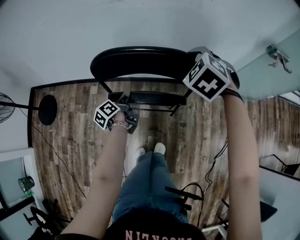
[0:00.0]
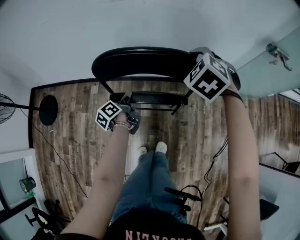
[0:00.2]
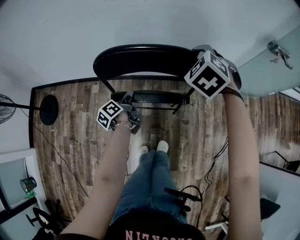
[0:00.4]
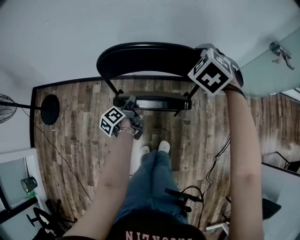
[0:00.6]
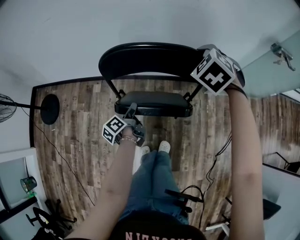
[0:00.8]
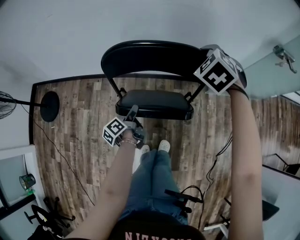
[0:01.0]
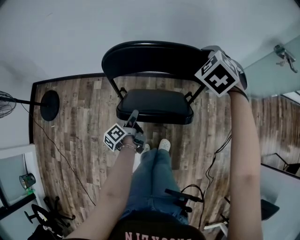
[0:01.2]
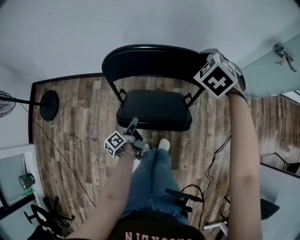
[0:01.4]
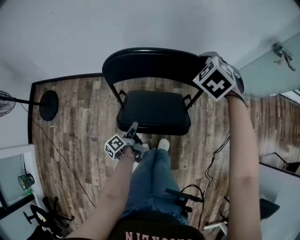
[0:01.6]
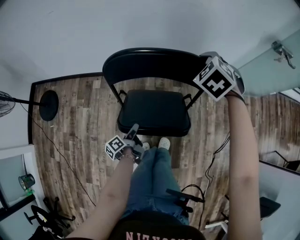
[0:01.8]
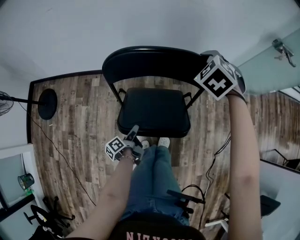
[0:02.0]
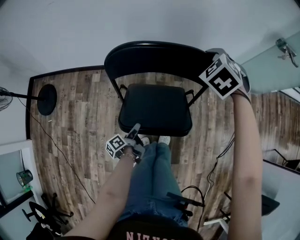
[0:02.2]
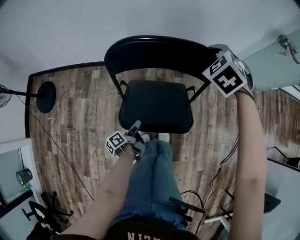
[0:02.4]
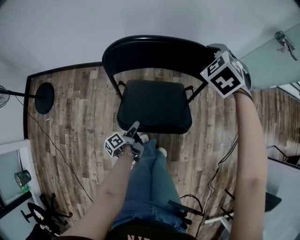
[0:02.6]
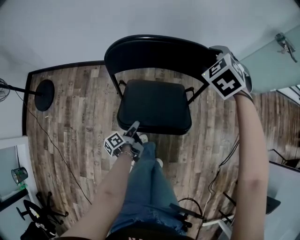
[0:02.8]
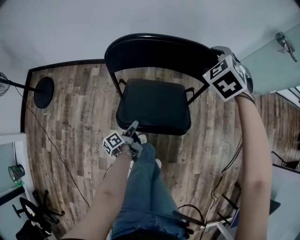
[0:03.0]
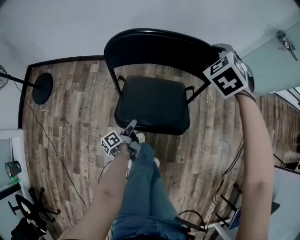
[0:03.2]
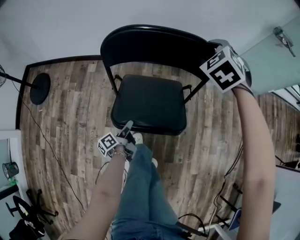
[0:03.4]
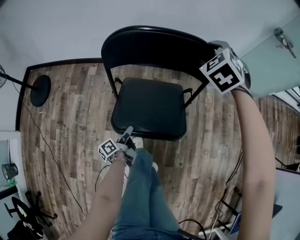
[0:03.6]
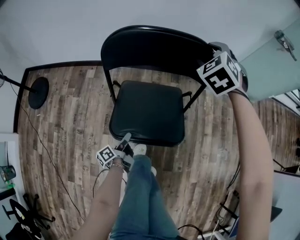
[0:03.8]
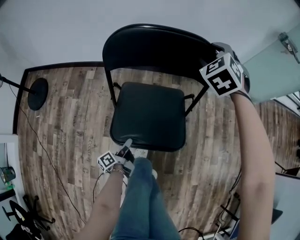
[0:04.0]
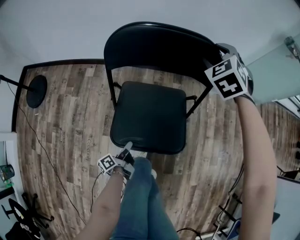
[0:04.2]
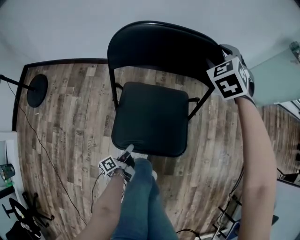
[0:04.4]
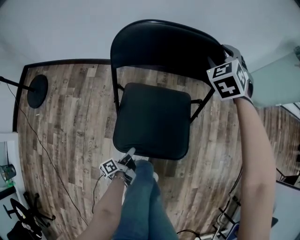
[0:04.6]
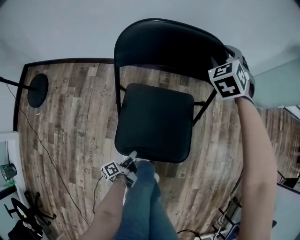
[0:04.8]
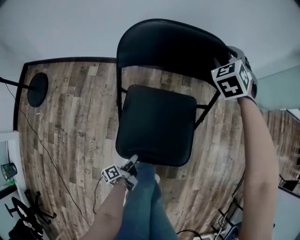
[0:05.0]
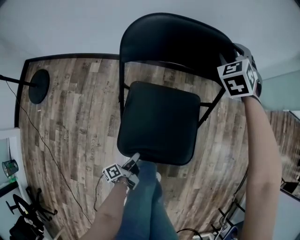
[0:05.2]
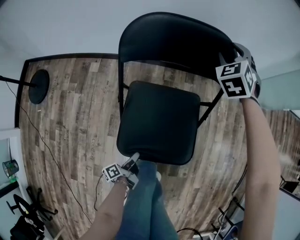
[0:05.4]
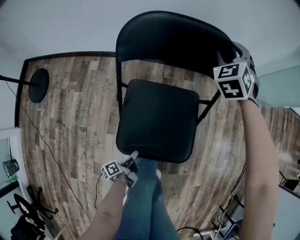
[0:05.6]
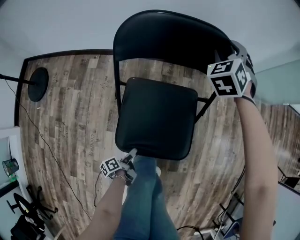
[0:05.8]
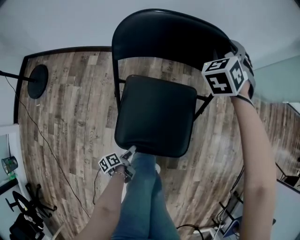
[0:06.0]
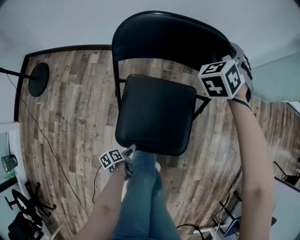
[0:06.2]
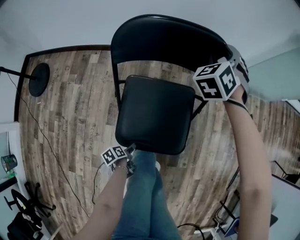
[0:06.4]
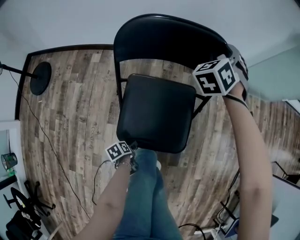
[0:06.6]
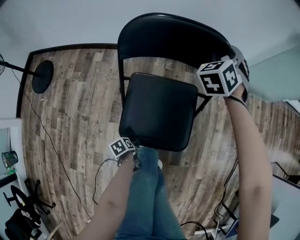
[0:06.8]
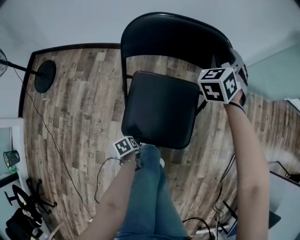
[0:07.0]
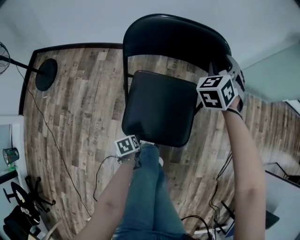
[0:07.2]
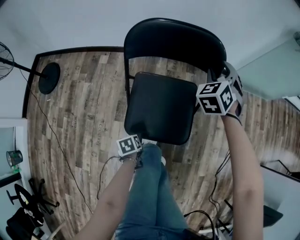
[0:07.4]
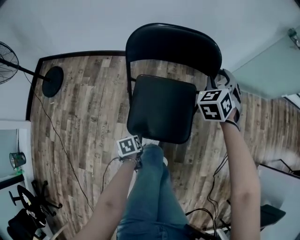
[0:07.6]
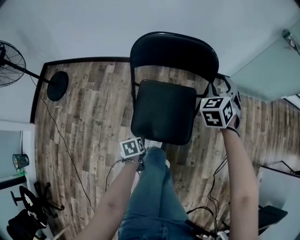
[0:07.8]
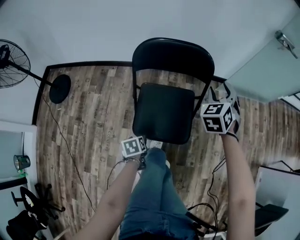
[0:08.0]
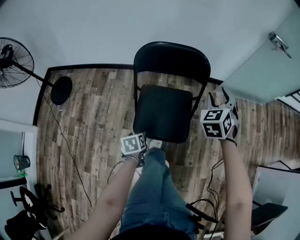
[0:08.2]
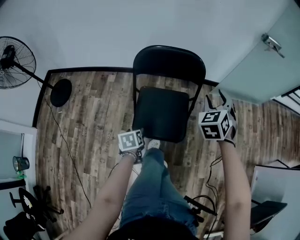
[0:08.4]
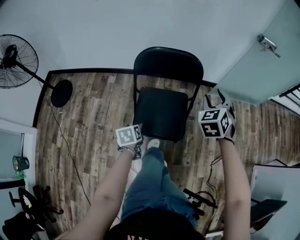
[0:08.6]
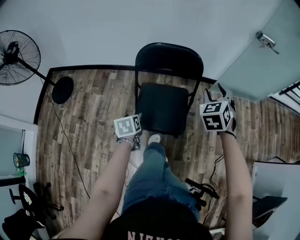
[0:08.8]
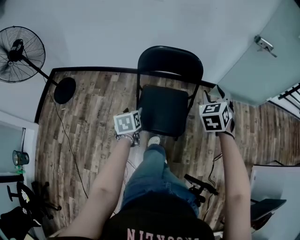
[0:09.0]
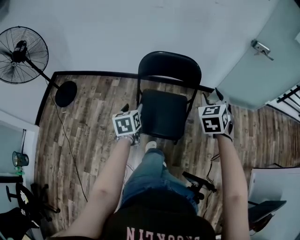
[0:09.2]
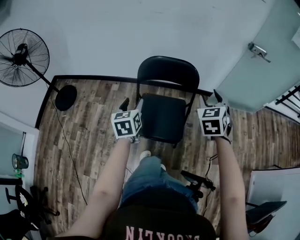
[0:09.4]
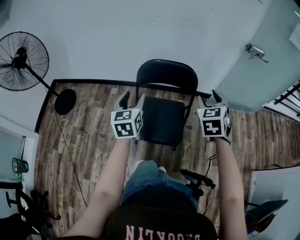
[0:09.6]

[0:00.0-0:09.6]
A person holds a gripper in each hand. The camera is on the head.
0:00.0 to 0:01.6: The left gripper goes some 20 cm backward and downward.
0:01.6 to 0:03.2: The right gripper heads backward, covering some 10 cm, while the left gripper moves backward and downward, about 15 cm.
0:03.2 to 0:04.8: The right gripper shifts approximately 20 cm forward and downward. Meanwhile the left gripper moves downward, about 10 cm.
0:04.8 to 0:06.4: The right gripper goes approximately 5 cm backward, while the left gripper is displaced backward and downward by about 10 cm, angles its fingers downward, by some 40 degrees, and opens up.
0:06.4 to 0:08.0: The right gripper shifts by some 20 cm; the left gripper moves upward, some 20 cm, and swivels approximately 40 degrees.
0:08.0 to 0:09.6: The right gripper shifts about 20 cm upward and backward. The left gripper is displaced upward by some 40 cm, and points its fingers some 50 degrees further upward.

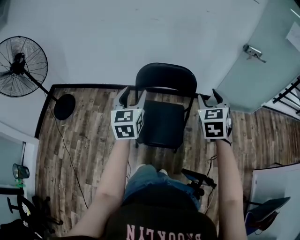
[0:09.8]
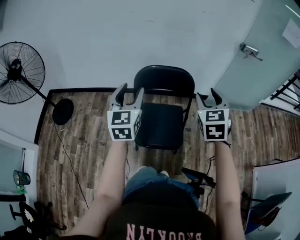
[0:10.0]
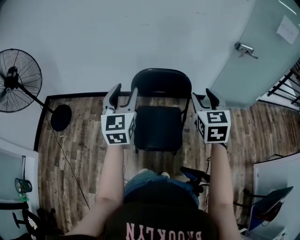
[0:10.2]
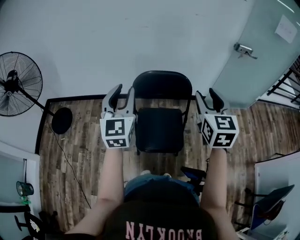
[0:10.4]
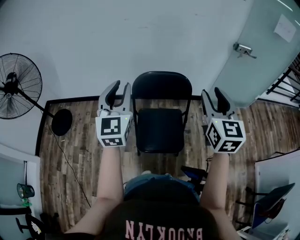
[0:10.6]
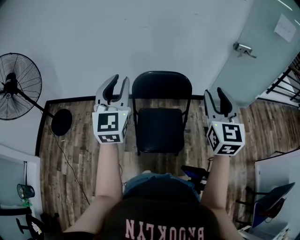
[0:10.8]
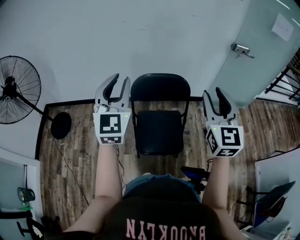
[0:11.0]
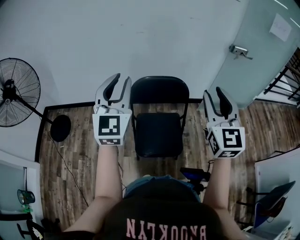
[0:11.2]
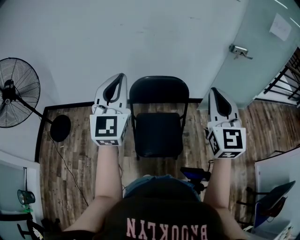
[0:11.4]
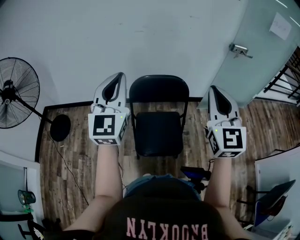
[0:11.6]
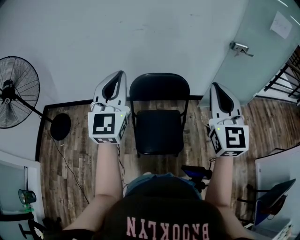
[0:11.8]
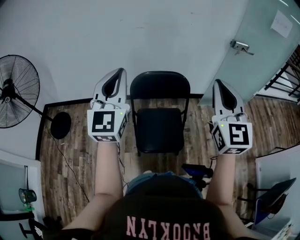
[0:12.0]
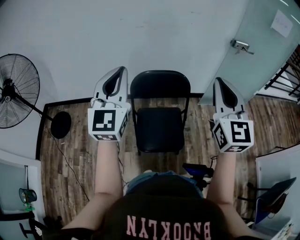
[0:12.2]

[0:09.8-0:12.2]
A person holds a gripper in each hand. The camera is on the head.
0:09.8 to 0:11.0: The two grippers go about 15 cm upward. The right gripper rotates roughly 30 degrees. Meanwhile the left gripper turns by about 30 degrees.
0:11.0 to 0:12.2: The grippers move only a little.

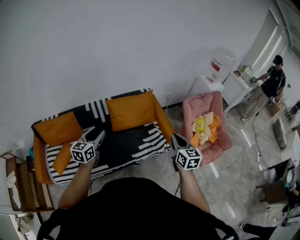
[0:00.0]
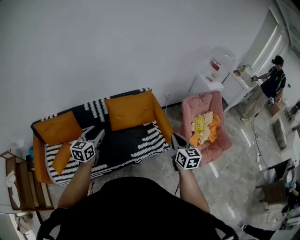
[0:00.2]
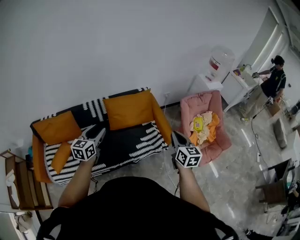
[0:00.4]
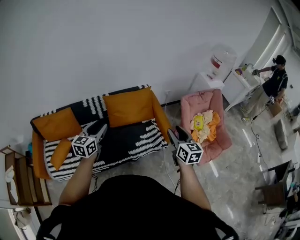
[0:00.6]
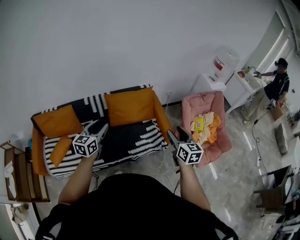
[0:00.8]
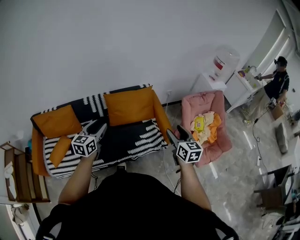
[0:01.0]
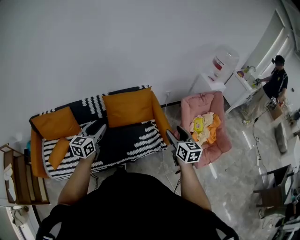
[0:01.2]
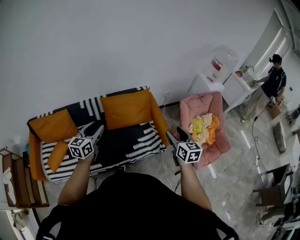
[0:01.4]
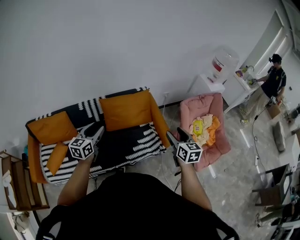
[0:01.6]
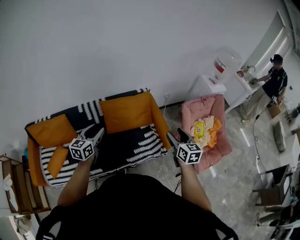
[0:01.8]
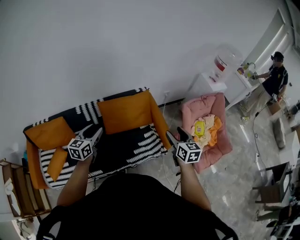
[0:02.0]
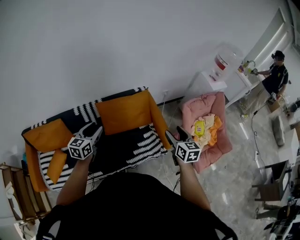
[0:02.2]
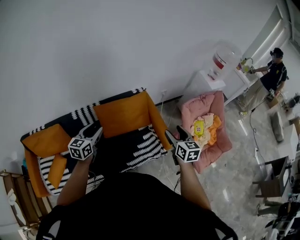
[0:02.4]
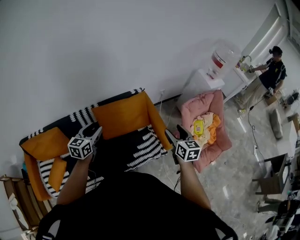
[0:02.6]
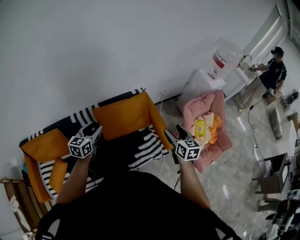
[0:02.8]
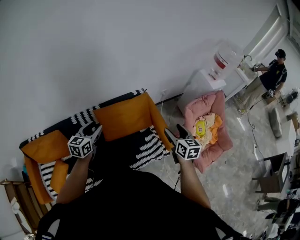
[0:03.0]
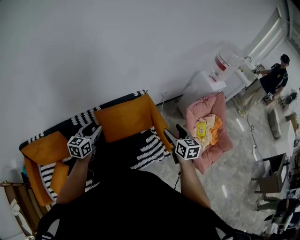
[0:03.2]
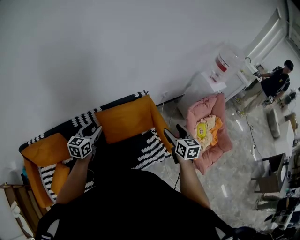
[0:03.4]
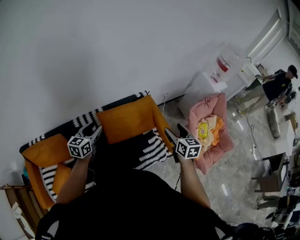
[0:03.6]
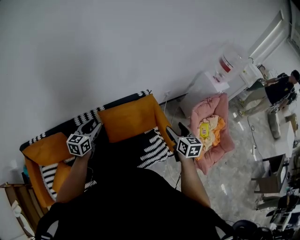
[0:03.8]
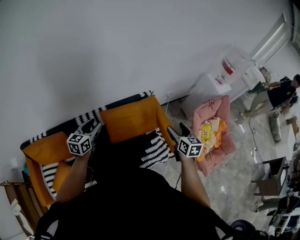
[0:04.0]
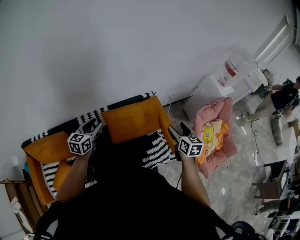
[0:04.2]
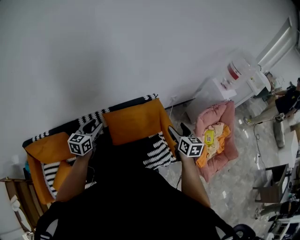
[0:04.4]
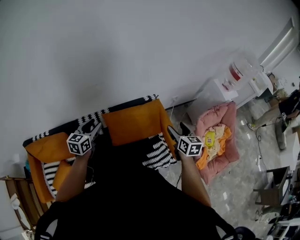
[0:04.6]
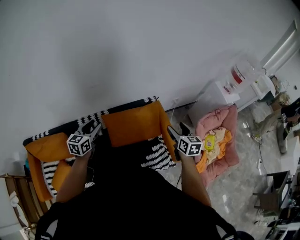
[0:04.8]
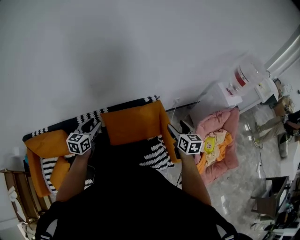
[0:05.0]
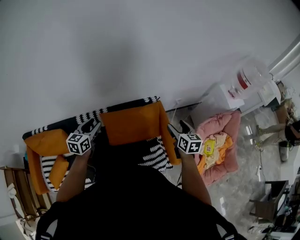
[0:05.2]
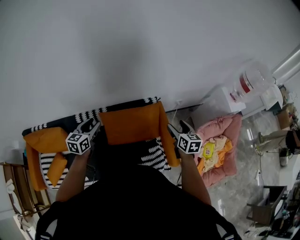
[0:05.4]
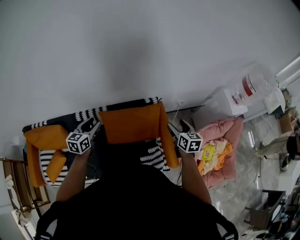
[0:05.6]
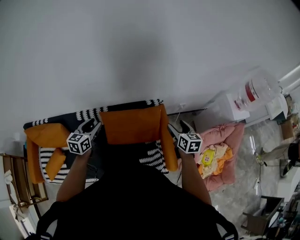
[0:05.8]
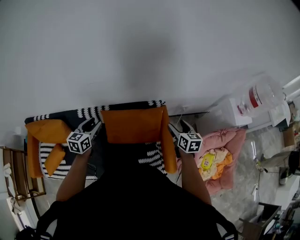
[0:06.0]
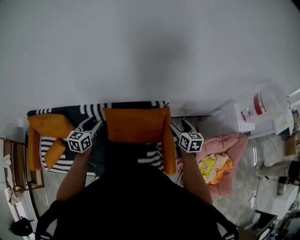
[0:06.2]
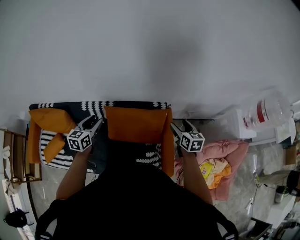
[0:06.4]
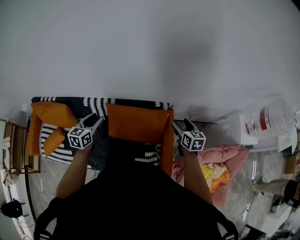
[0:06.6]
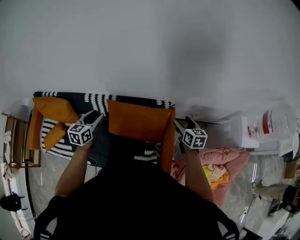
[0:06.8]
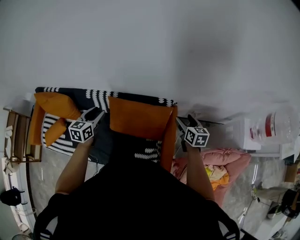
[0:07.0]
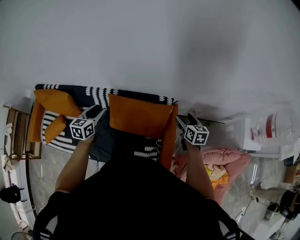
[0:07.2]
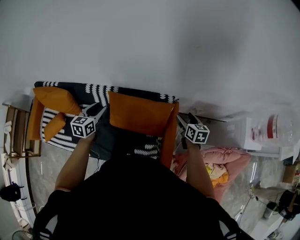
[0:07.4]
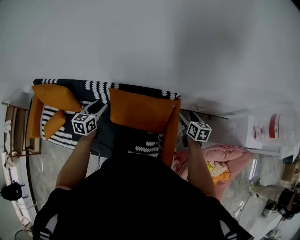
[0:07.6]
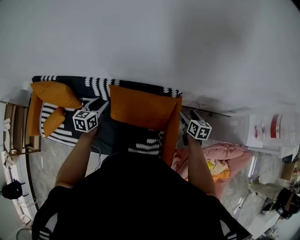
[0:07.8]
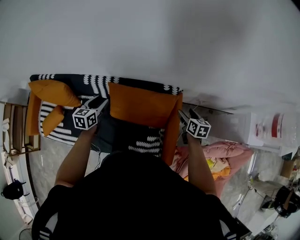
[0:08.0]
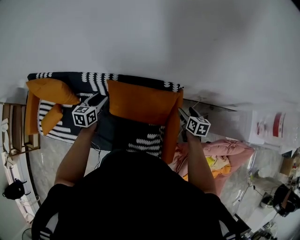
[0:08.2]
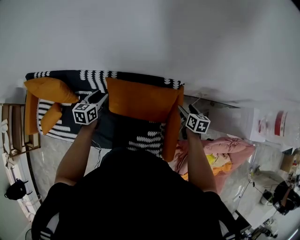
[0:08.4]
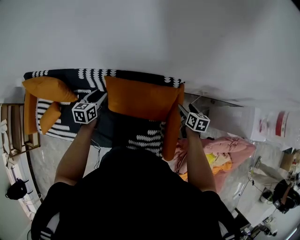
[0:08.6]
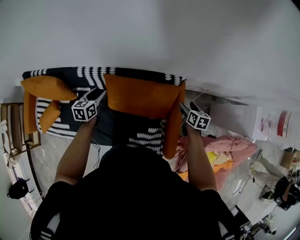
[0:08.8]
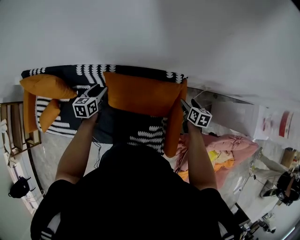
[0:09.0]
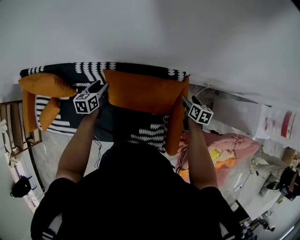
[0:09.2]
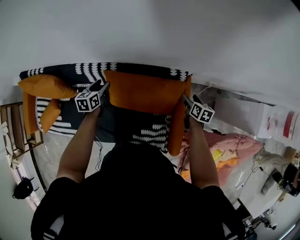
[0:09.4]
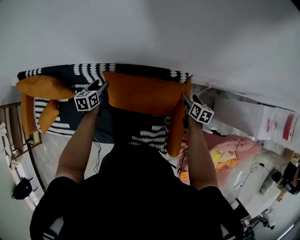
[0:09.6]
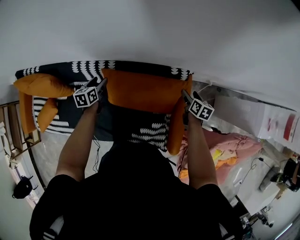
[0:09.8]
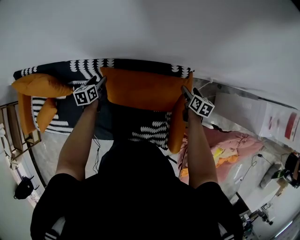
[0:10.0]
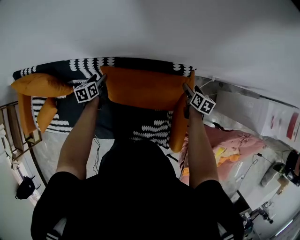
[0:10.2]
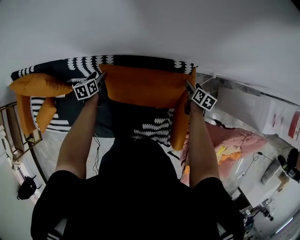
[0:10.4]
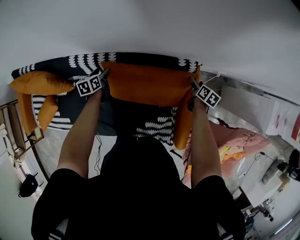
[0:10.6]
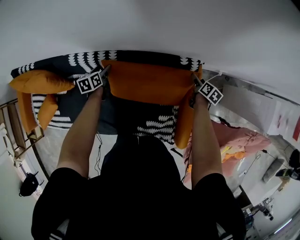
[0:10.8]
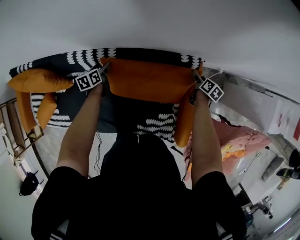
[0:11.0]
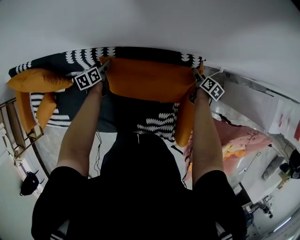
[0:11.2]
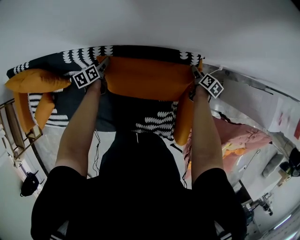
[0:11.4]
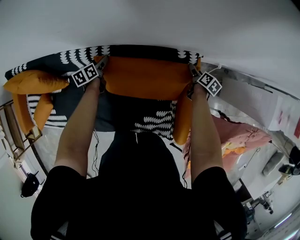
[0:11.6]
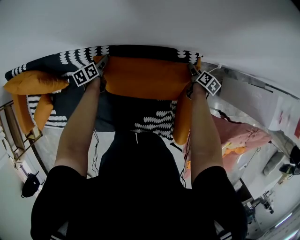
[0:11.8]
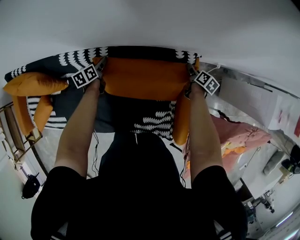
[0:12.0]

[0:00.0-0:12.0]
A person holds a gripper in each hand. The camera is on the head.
0:00.0 to 0:01.6: The left gripper travels forward by about 10 cm; the right gripper is displaced forward and to the right by about 10 cm, and opens its fingers.
0:01.6 to 0:03.0: The grippers both shift forward by roughly 15 cm.
0:03.0 to 0:04.4: The right gripper moves forward and to the left, approximately 10 cm. Meanwhile the left gripper heads to the left, covering approximately 10 cm.
0:04.4 to 0:06.0: The right gripper moves forward and to the right, some 20 cm. Meanwhile the left gripper heads to the right and forward, covering some 10 cm.
0:06.0 to 0:07.6: The right gripper is displaced downward and forward by roughly 15 cm. Meanwhile the left gripper travels downward by approximately 5 cm.
0:07.6 to 0:09.0: The left gripper moves downward and forward, about 15 cm. The right gripper shifts roughly 15 cm downward.
0:09.0 to 0:10.4: The left gripper shifts about 15 cm downward. Meanwhile the right gripper heads downward and forward, covering approximately 10 cm.
0:10.4 to 0:12.0: The right gripper goes approximately 5 cm downward. The left gripper shifts by about 5 cm.
